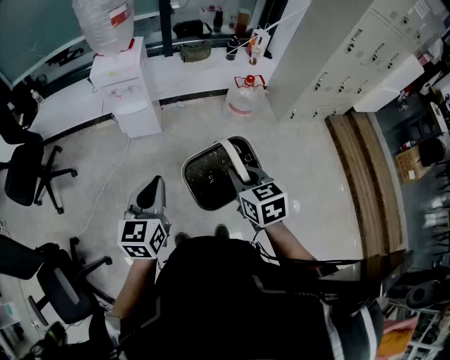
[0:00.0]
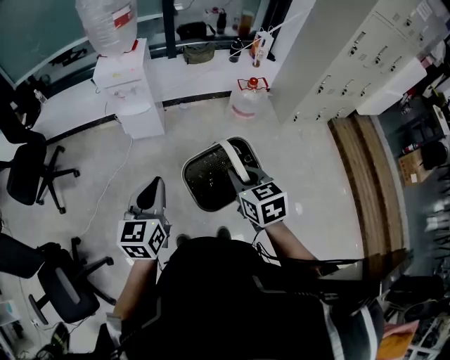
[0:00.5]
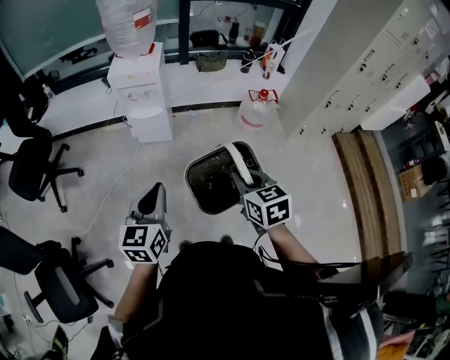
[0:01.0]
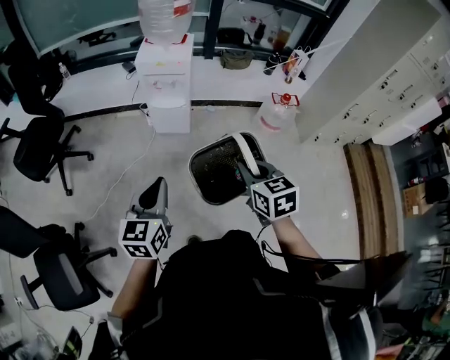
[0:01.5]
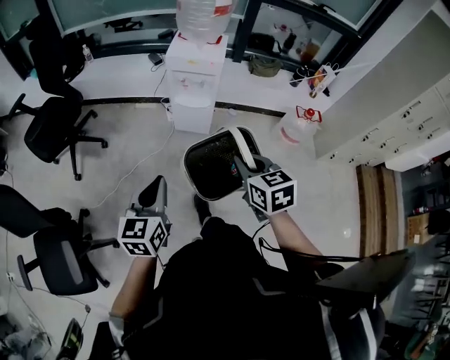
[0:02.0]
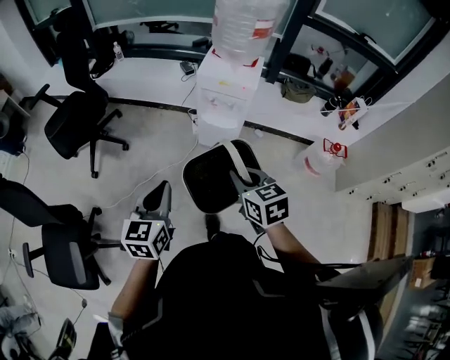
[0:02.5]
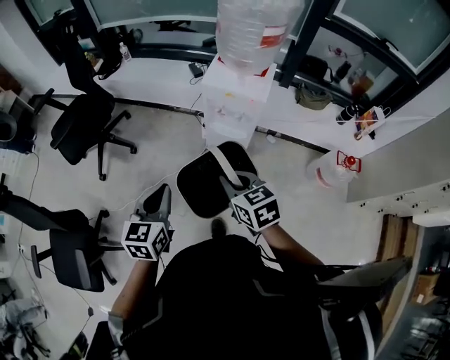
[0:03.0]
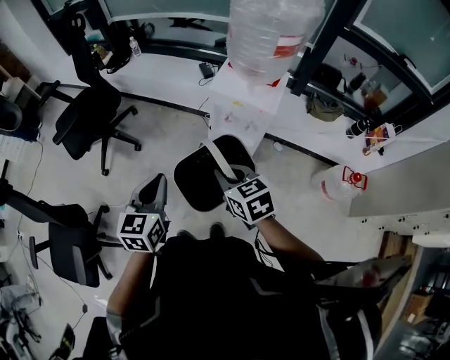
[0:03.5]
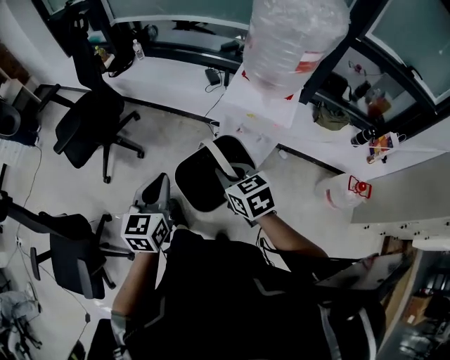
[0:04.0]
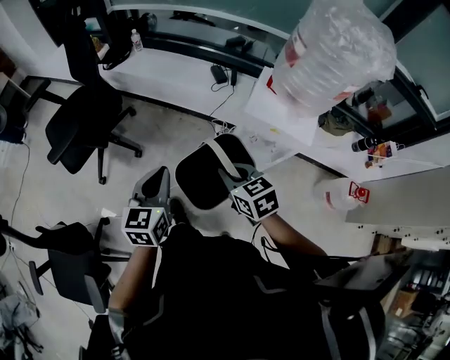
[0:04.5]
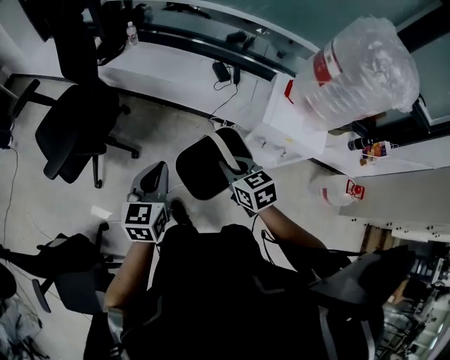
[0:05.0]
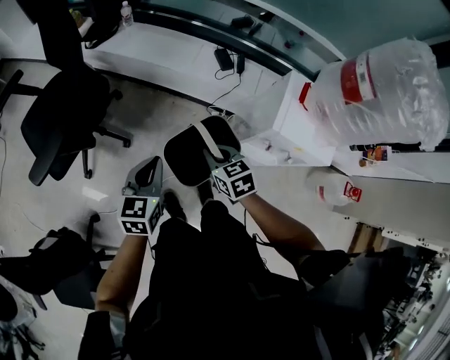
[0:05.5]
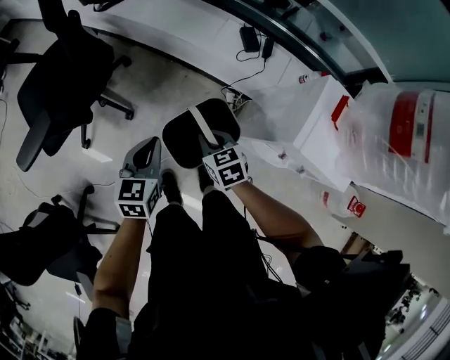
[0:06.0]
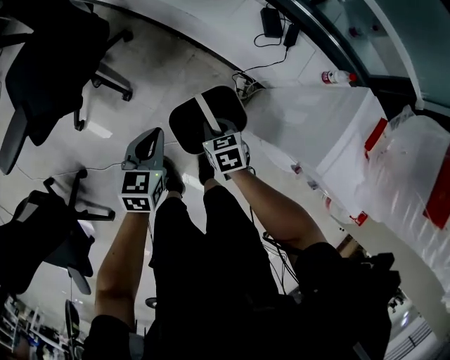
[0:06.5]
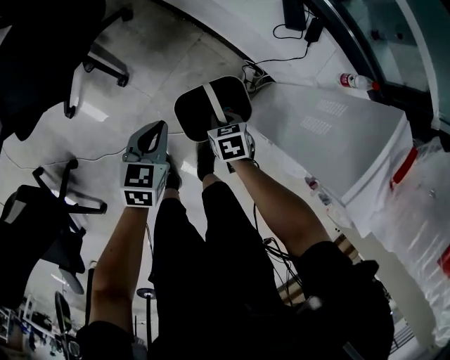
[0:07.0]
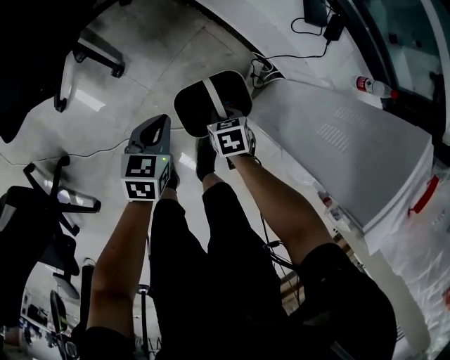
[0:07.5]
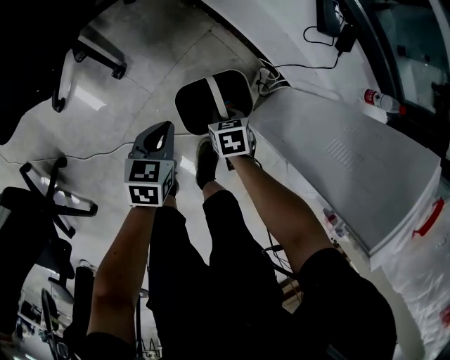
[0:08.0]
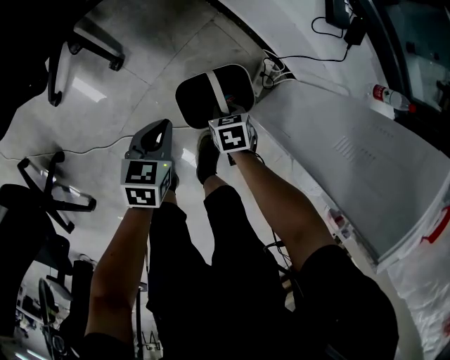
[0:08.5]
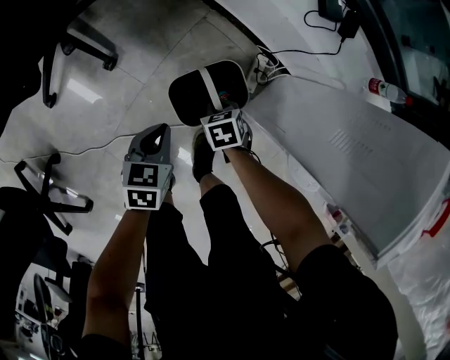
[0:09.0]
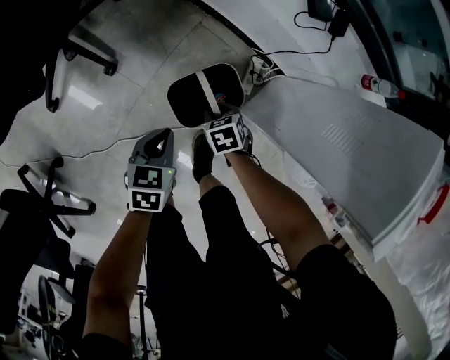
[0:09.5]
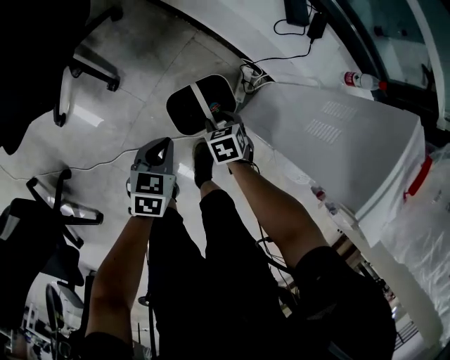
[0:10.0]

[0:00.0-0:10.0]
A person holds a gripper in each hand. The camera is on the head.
0.0 to 2.0 s: The right gripper goes approximately 25 cm to the left and forward, while the left gripper travels to the left by approximately 25 cm.
2.0 to 4.0 s: The grippers both shift forward by about 35 cm. The right gripper turns by roughly 30 degrees.
4.0 to 6.0 s: Both grippers travel together forward and downward, some 40 cm.
6.0 to 8.0 s: The two grippers go about 35 cm downward. The right gripper rotates some 20 degrees. Meanwhile the left gripper turns by some 20 degrees.
8.0 to 10.0 s: The right gripper moves some 5 cm, and opens up, while the left gripper moves about 5 cm.

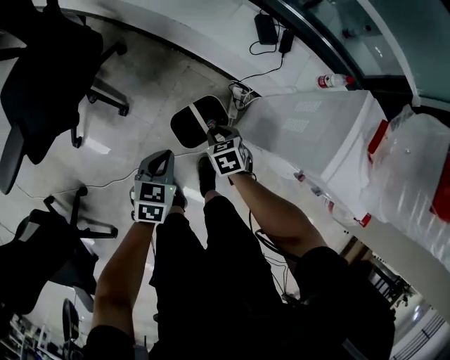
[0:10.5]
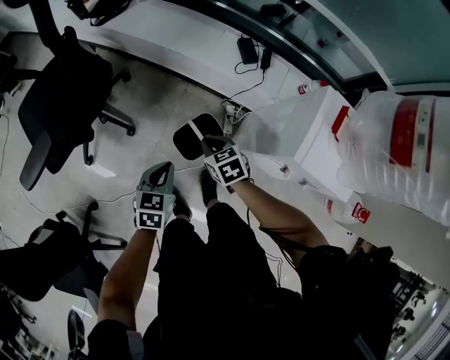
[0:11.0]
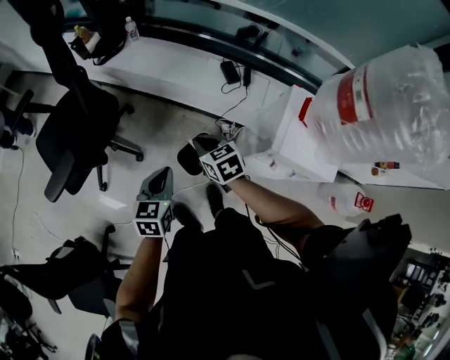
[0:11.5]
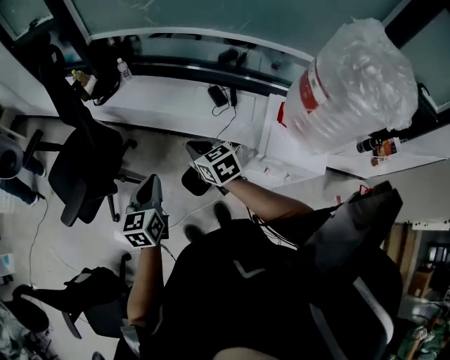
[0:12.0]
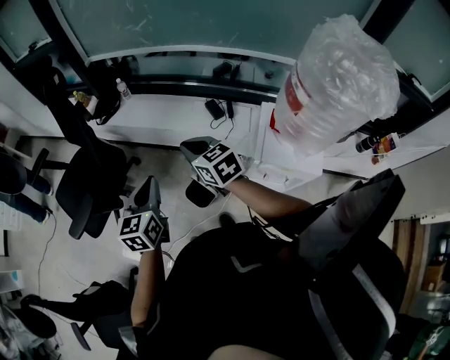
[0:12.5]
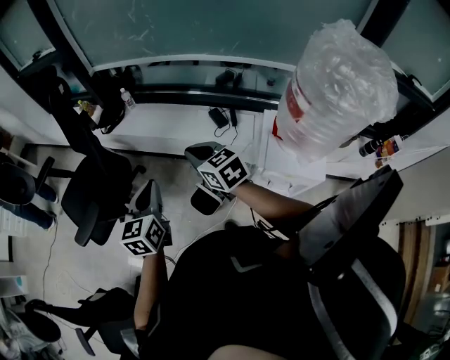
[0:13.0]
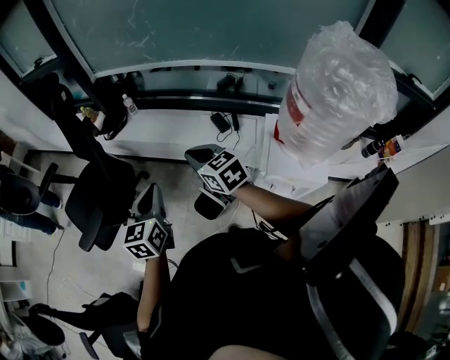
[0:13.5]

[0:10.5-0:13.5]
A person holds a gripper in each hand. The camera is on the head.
10.5 to 12.0 s: Both grippers travel together upward, some 35 cm. The right gripper angles its fingers upward, by some 30 degrees; the left gripper swivels some 30 degrees.
12.0 to 13.5 s: The grippers both shift upward by some 10 cm.

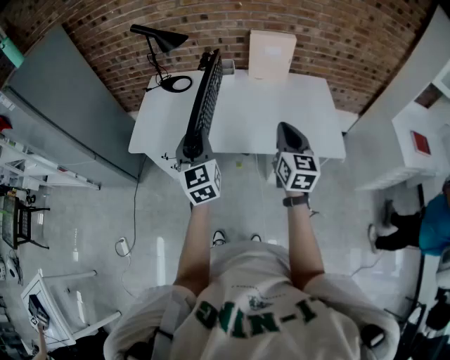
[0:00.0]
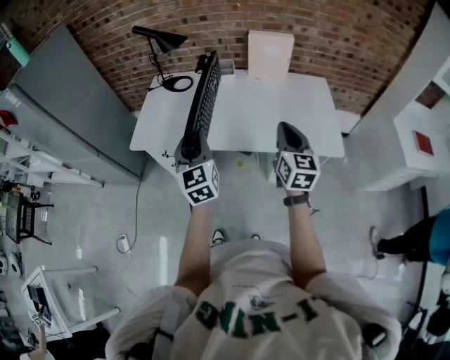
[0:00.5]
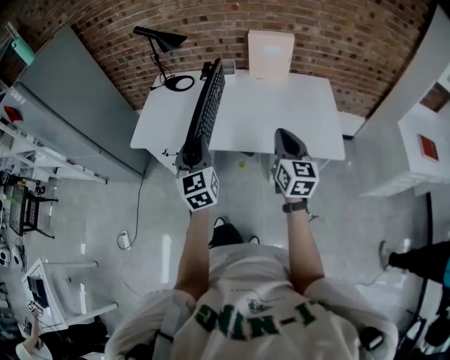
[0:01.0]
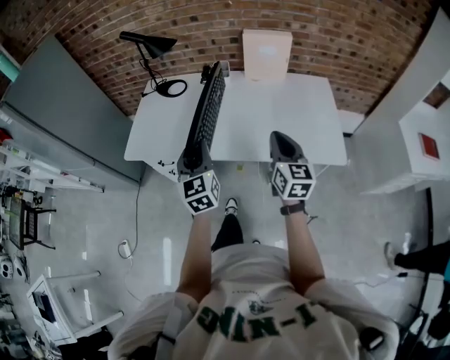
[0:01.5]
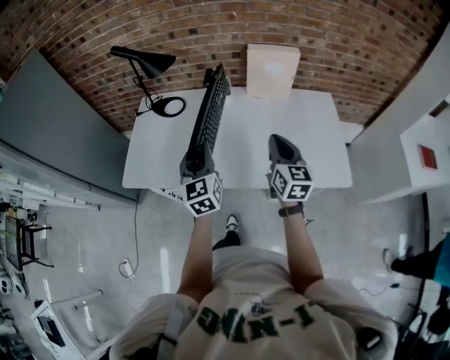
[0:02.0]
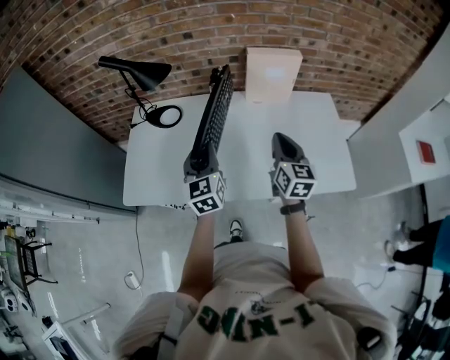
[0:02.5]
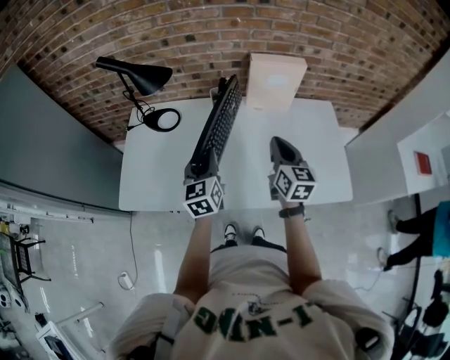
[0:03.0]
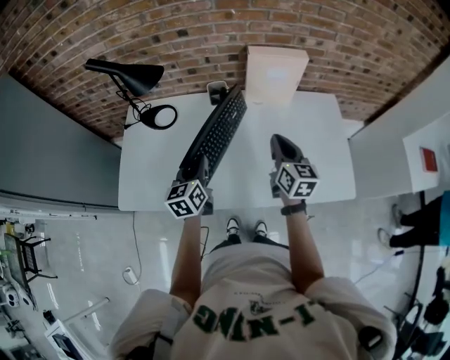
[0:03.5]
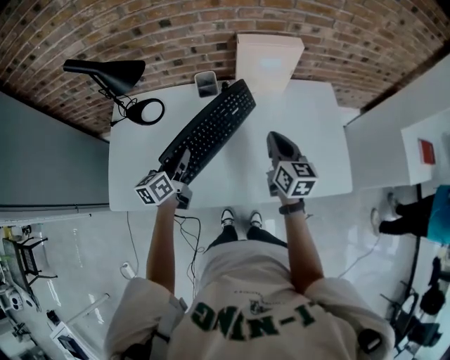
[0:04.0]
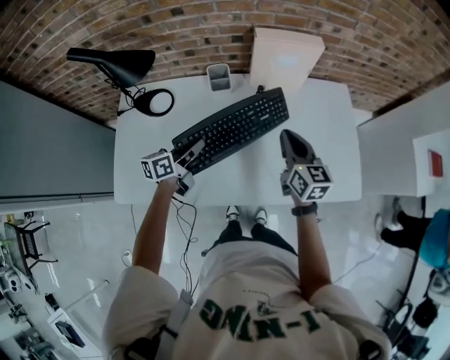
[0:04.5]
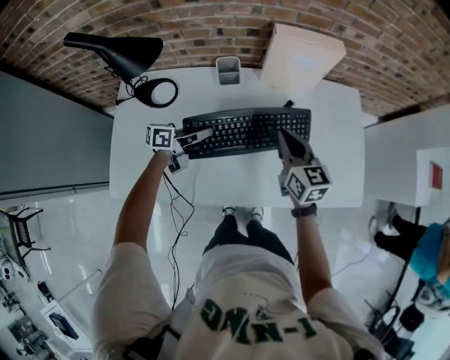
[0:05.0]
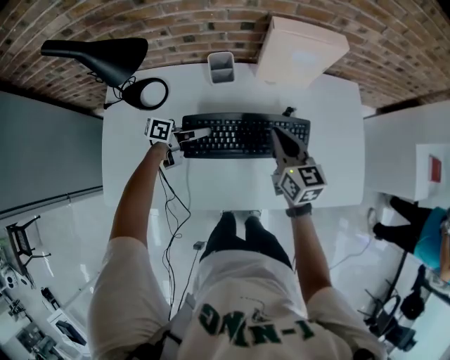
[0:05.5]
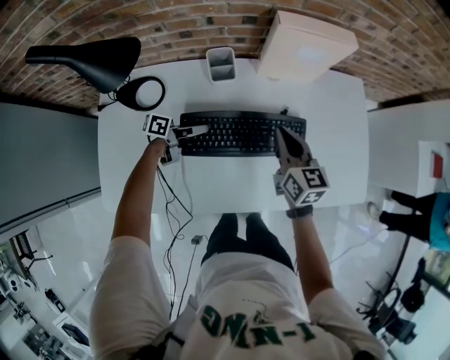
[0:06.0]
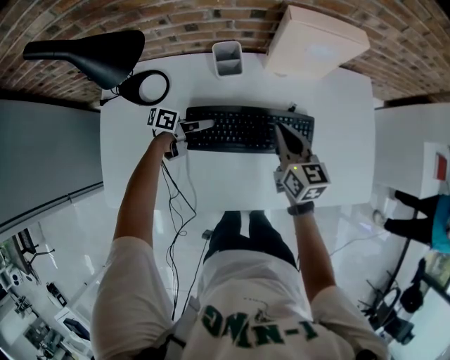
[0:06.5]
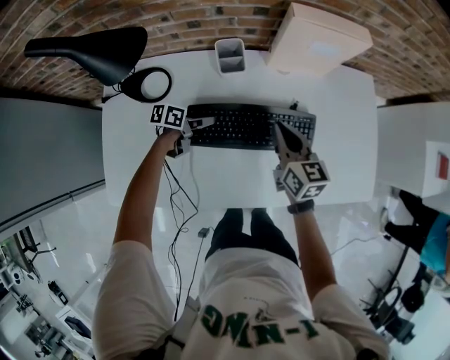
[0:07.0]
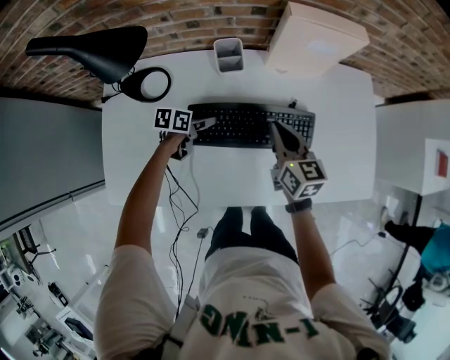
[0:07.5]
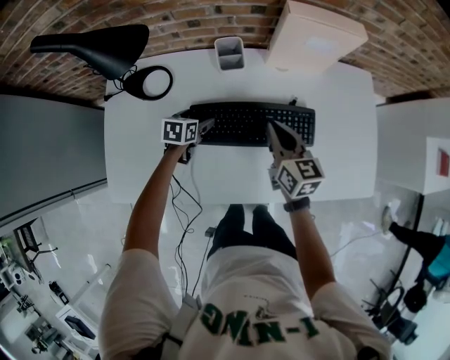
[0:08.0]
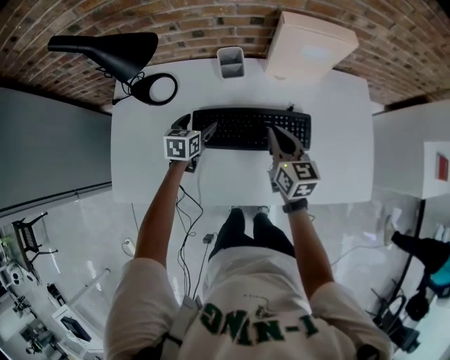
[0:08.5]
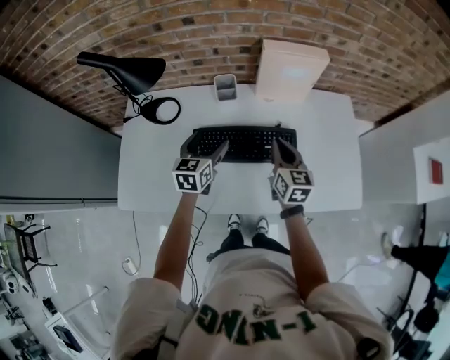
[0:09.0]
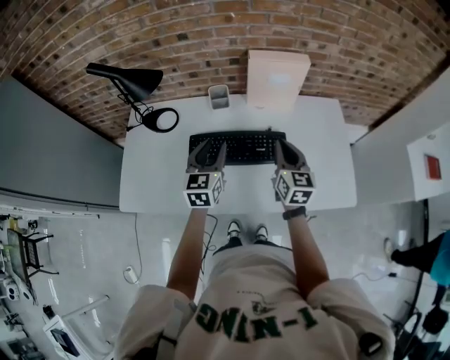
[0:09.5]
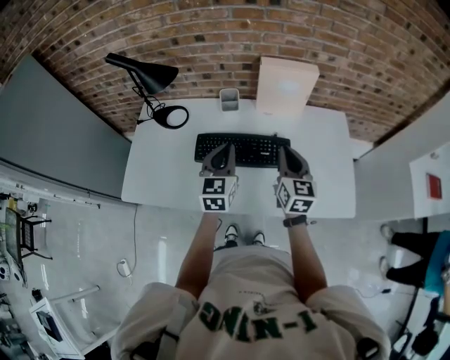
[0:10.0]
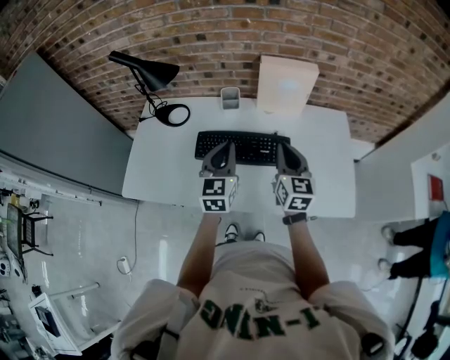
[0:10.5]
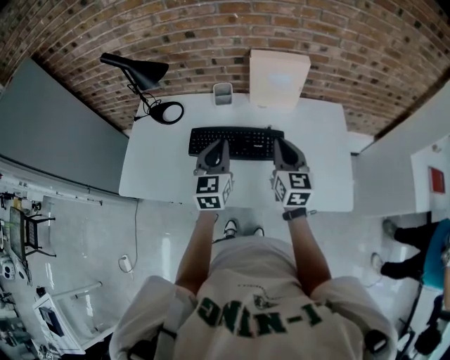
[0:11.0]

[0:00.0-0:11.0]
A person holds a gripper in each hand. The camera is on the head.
0.0 to 2.0 s: Both grippers travel together forward, about 15 cm.
2.0 to 3.5 s: The right gripper moves forward, roughly 15 cm. Meanwhile the left gripper goes roughly 15 cm forward and downward, and changes its angle by some 30 degrees.
3.5 to 5.5 s: The right gripper ends up roughly 10 cm from where it was. Meanwhile the left gripper shifts about 15 cm downward, and turns by roughly 70 degrees.
5.5 to 7.5 s: The right gripper shifts by about 5 cm. Meanwhile the left gripper heads downward and to the left, covering approximately 10 cm, tips its fingers downward by roughly 30 degrees, and opens up.
7.5 to 9.0 s: The left gripper heads upward, covering about 20 cm, and turns by some 50 degrees. The right gripper travels to the right by some 5 cm.
9.0 to 11.0 s: Both grippers move upward, to the right and backward, roughly 15 cm. The left gripper swivels approximately 20 degrees, and closes its fingers.

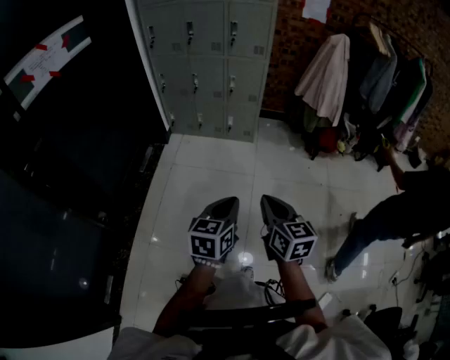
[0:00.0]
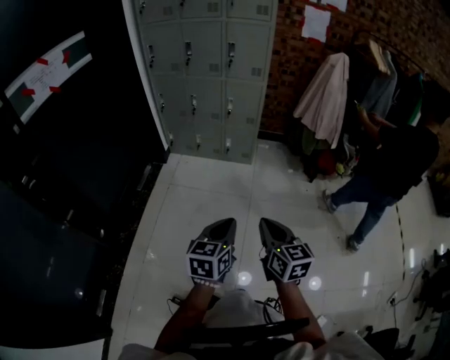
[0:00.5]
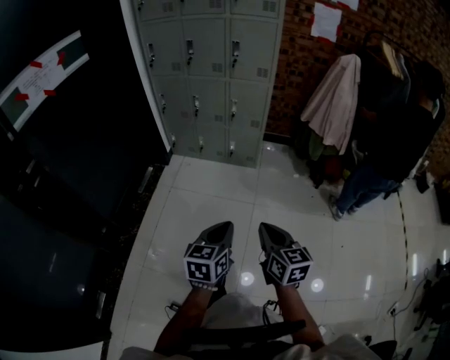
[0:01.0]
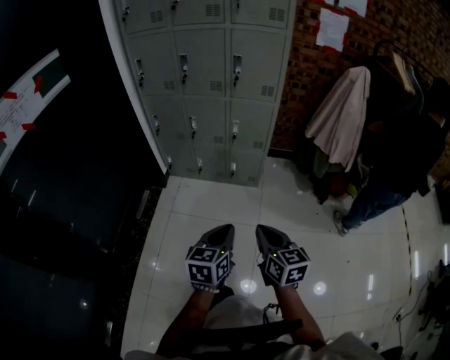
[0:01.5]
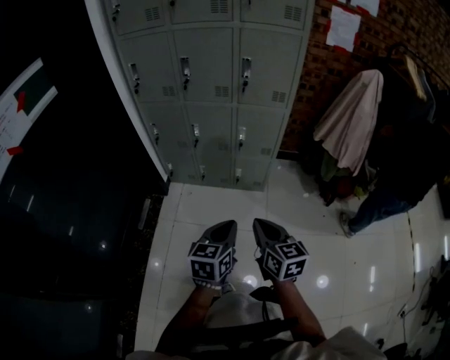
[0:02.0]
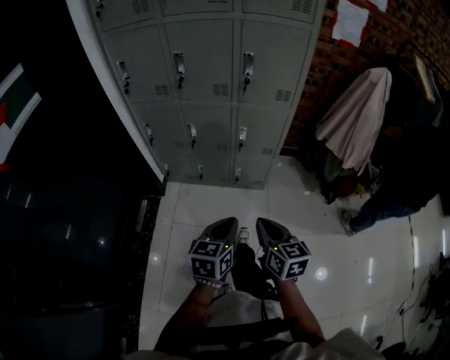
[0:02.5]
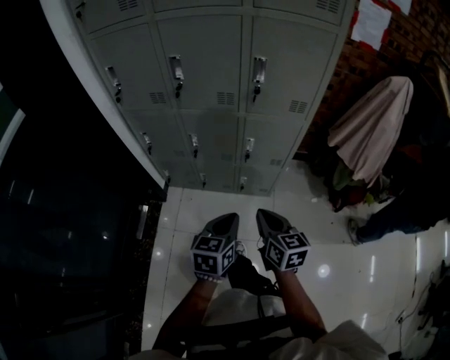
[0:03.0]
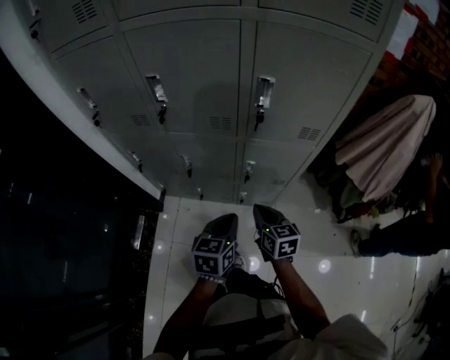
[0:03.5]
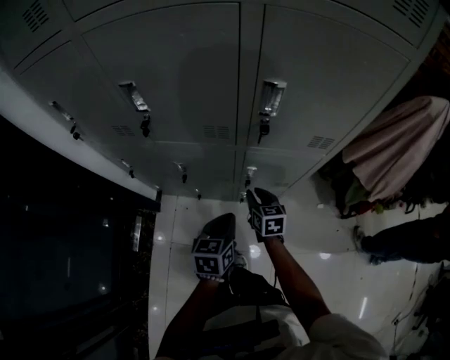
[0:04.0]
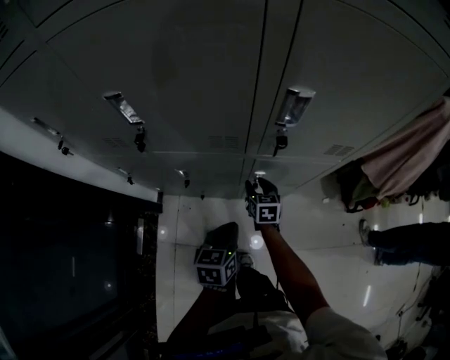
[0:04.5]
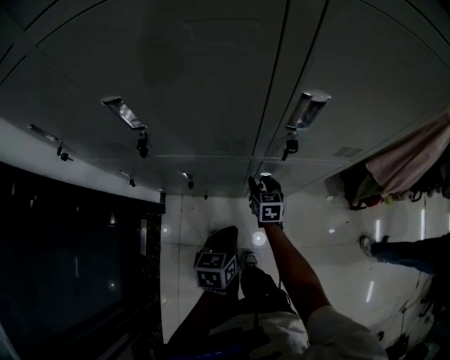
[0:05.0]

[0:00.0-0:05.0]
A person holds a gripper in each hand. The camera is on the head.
0.0 to 2.5 s: The pair of grippers is taken forward, about 50 cm.
2.5 to 5.0 s: Both grippers travel together forward and downward, about 50 cm. The right gripper changes its angle by approximately 20 degrees, and opens.
